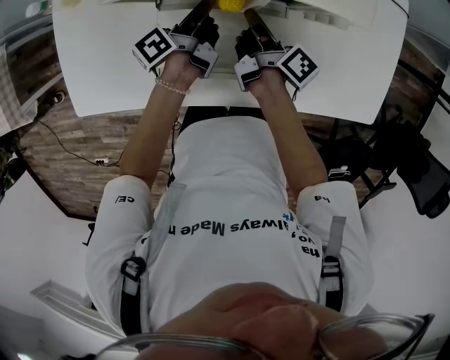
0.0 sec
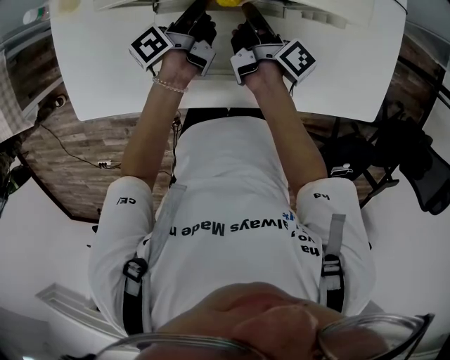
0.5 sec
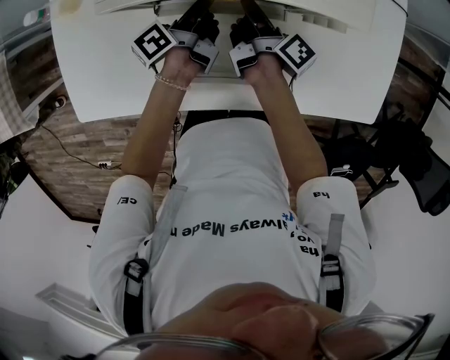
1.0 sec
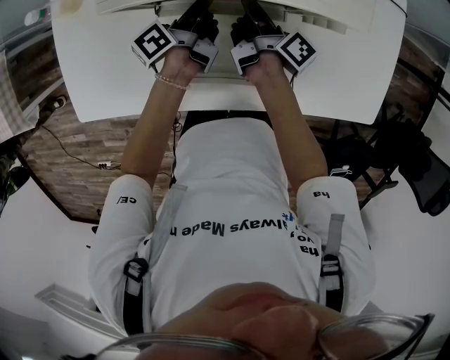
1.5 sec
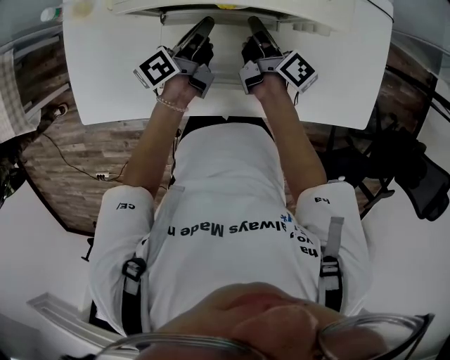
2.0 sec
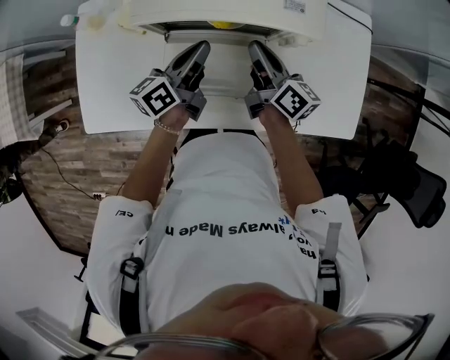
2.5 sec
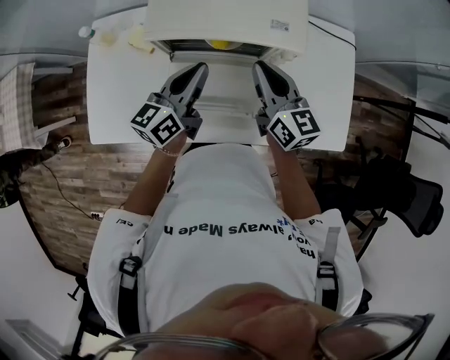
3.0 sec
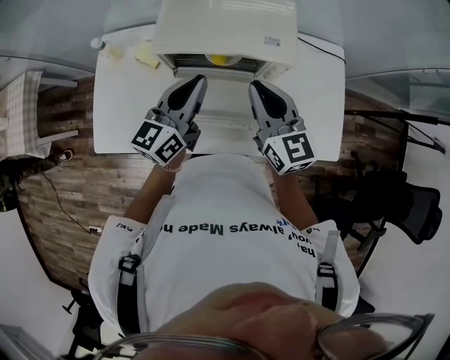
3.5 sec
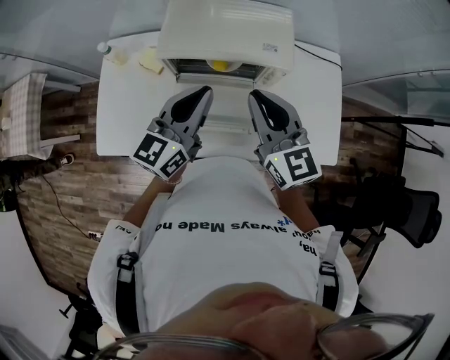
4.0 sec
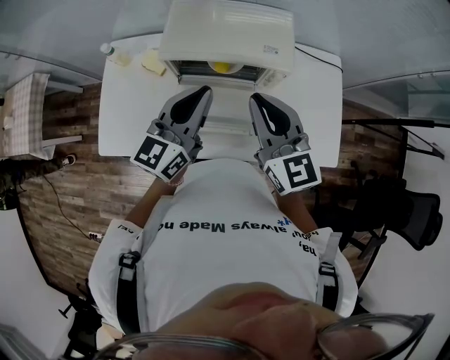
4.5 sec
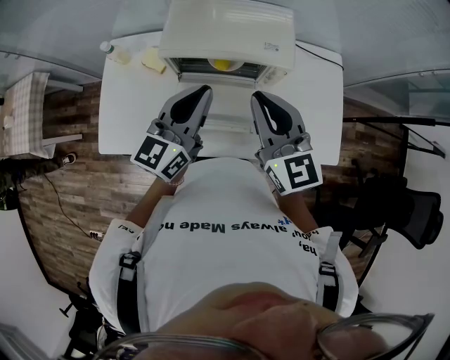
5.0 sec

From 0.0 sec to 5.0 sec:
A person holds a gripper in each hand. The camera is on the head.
From 0.0 sec to 2.5 sec: Both grippers travel together upward, about 15 cm. The right gripper rotates approximately 40 degrees. The left gripper turns by some 30 degrees.
From 2.5 sec to 5.0 sec: The grippers both shift upward and backward by roughly 25 cm. The left gripper turns by about 40 degrees; the right gripper twists some 50 degrees counterclockwise, seen from behind.

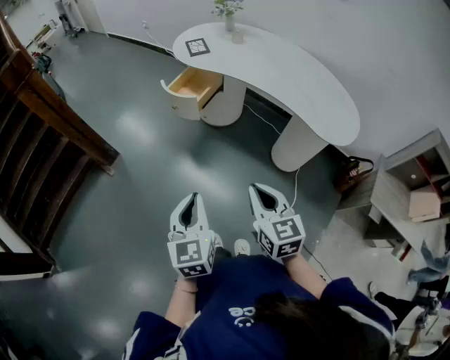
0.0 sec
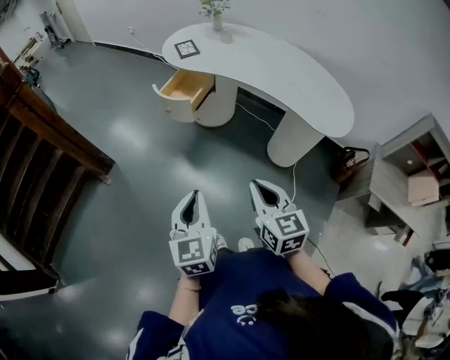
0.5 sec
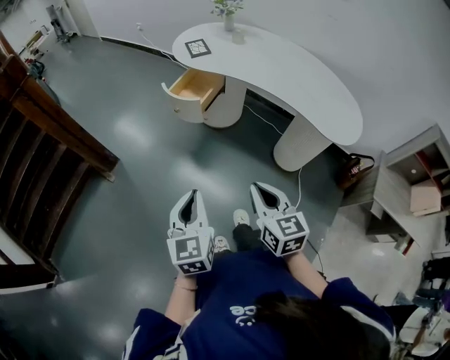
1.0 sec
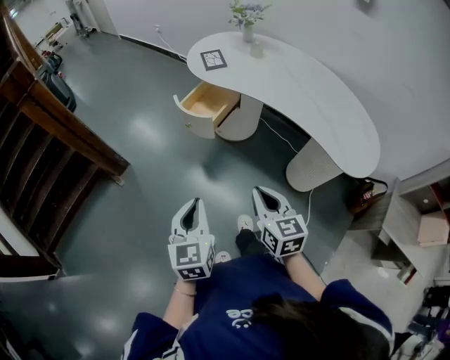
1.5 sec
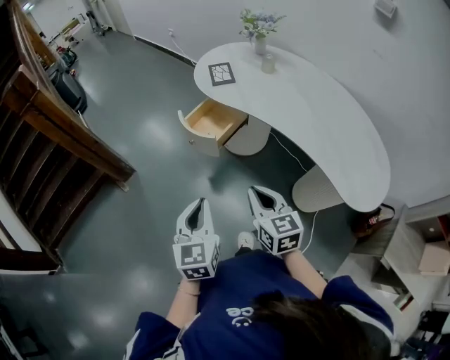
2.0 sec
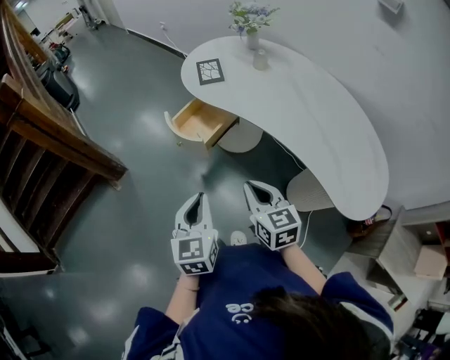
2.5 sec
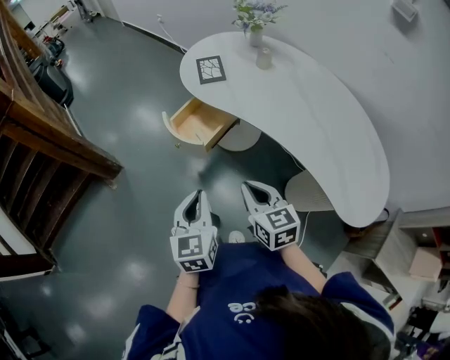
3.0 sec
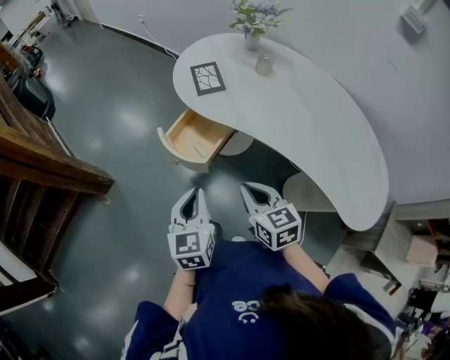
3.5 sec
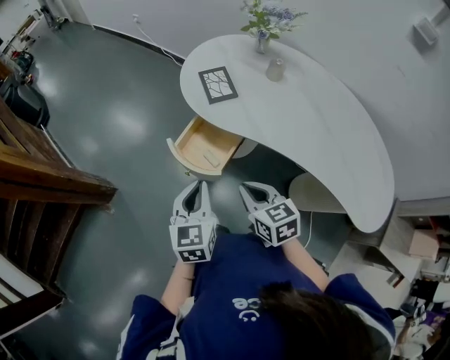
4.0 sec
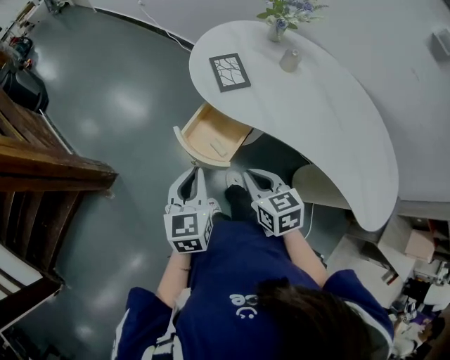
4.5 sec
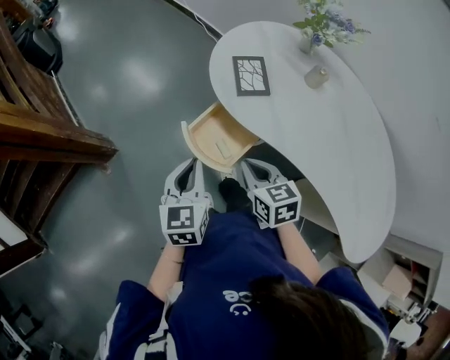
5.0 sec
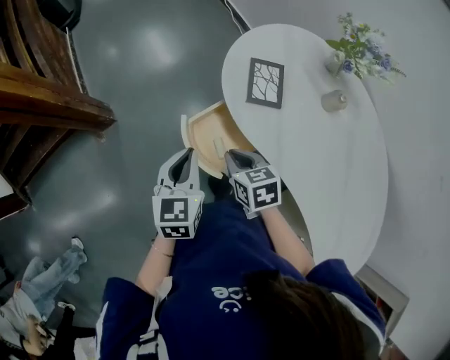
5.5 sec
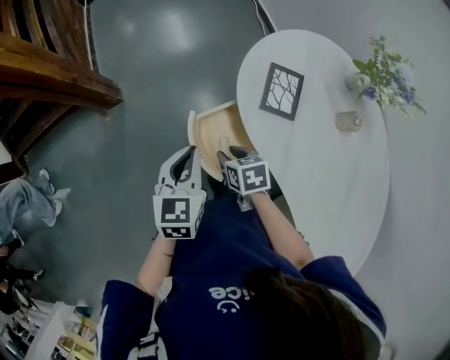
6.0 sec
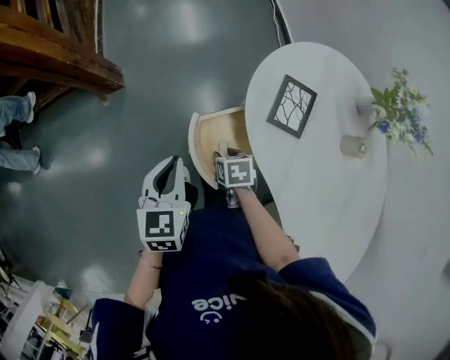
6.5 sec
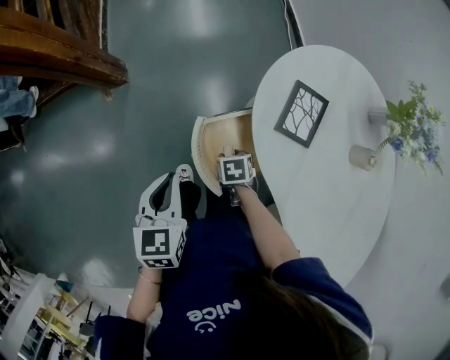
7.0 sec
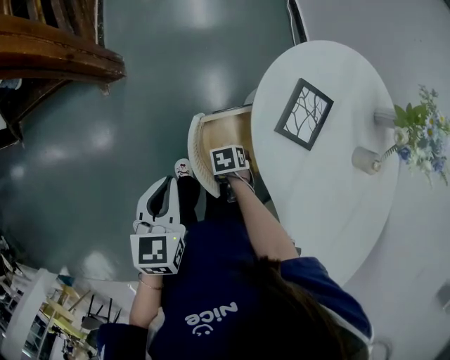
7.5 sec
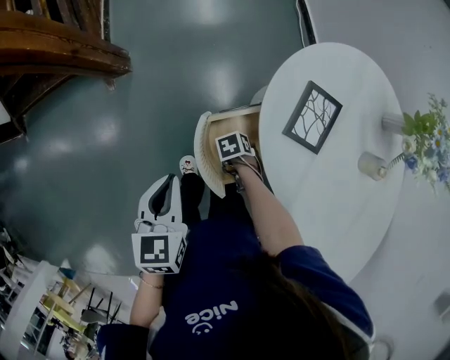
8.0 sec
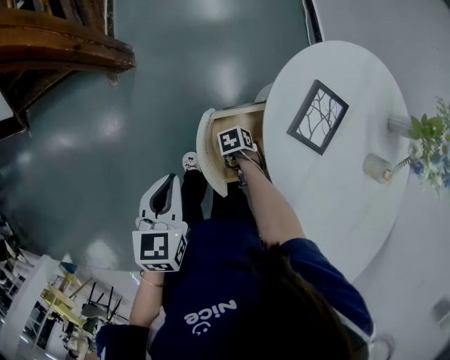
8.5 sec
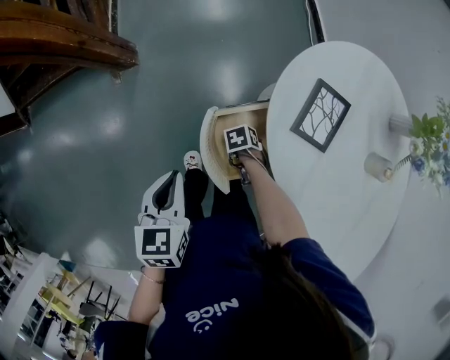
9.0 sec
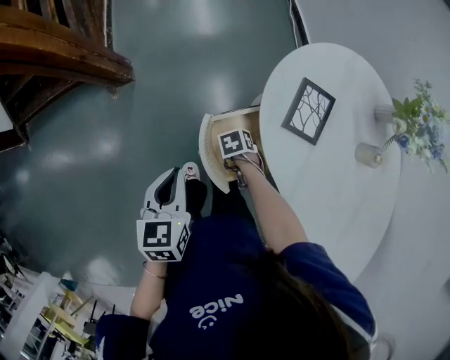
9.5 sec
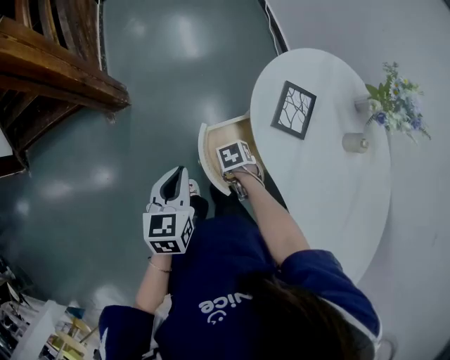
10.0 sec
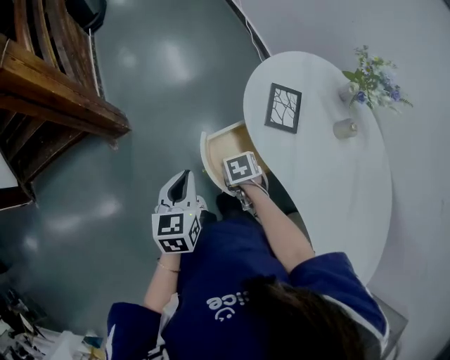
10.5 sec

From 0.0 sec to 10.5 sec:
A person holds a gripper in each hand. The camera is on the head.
From 0.0 sec to 2.0 sec: The grippers both shift forward by approximately 25 cm.
From 2.0 sec to 4.0 sec: The two grippers go roughly 25 cm forward.
From 4.0 sec to 6.5 sec: The left gripper changes place by about 15 cm, and rotates roughly 40 degrees; the right gripper goes about 20 cm downward, tilts its fingers approximately 30 degrees downward, and opens.
From 6.5 sec to 8.5 sec: The right gripper heads downward, covering some 15 cm, and rotates roughly 40 degrees.
From 8.5 sec to 10.5 sec: The right gripper travels upward by some 20 cm, and turns by about 30 degrees.

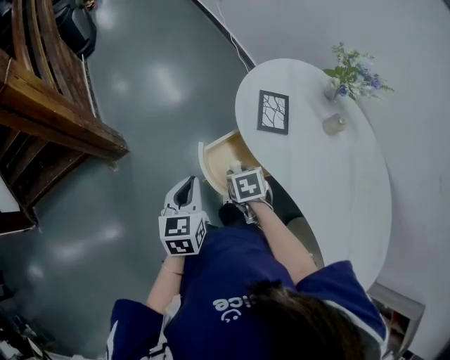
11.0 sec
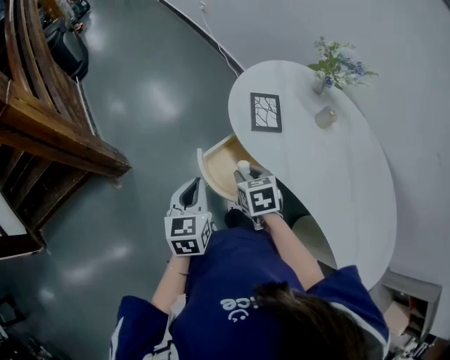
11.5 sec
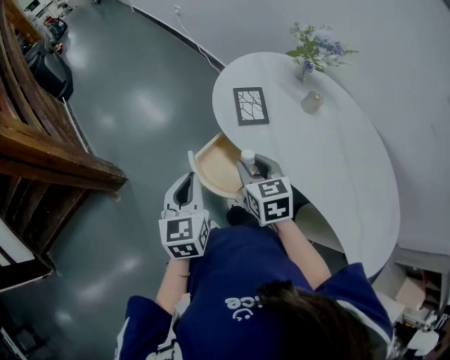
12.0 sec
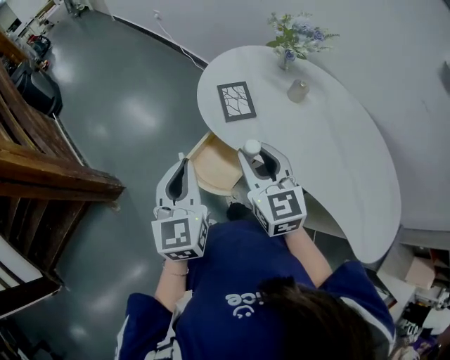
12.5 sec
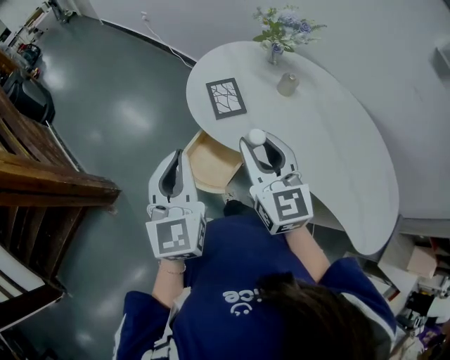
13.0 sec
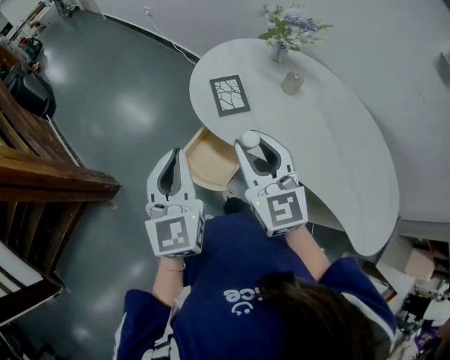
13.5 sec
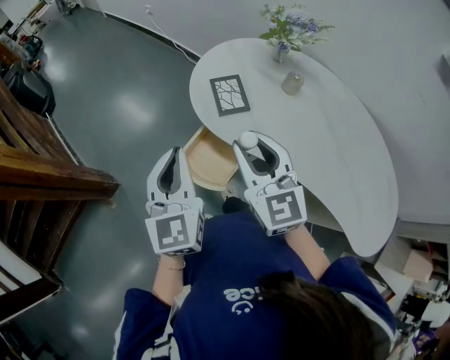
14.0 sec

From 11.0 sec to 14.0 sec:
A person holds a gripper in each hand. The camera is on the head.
From 11.0 sec to 12.5 sec: The left gripper is displaced upward and to the right by roughly 15 cm, and changes its angle by roughly 20 degrees. Meanwhile the right gripper is displaced upward by approximately 25 cm, and points its fingers about 50 degrees further upward.
From 12.5 sec to 14.0 sec: There are only small adjustments of the grippers.

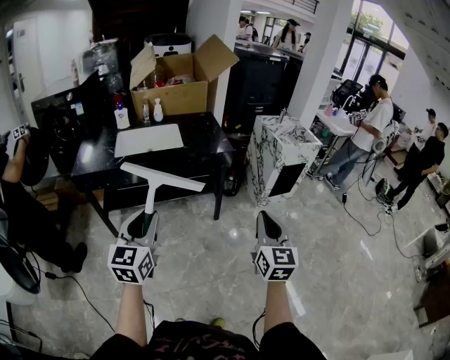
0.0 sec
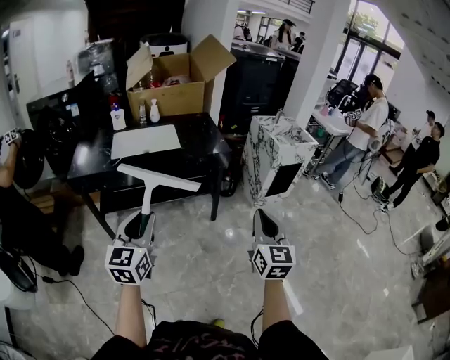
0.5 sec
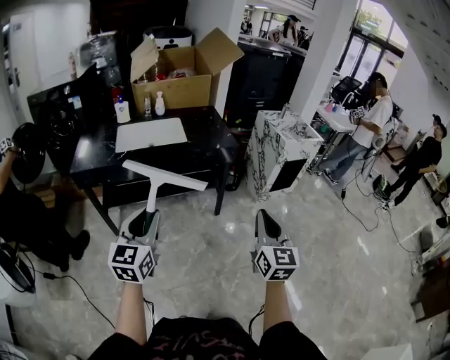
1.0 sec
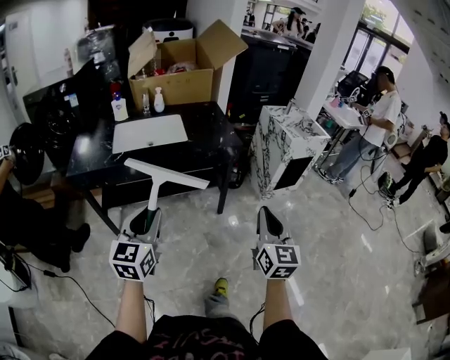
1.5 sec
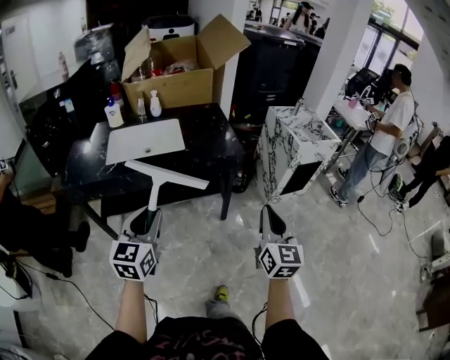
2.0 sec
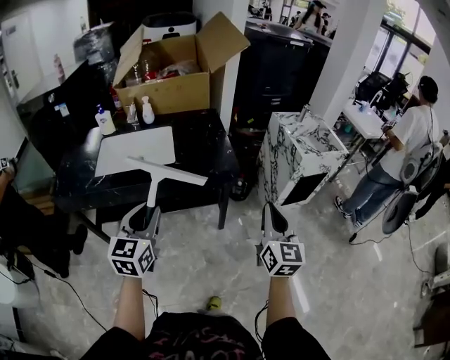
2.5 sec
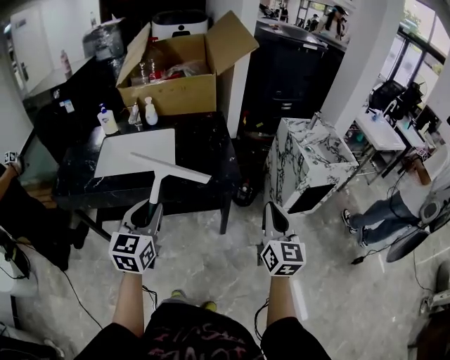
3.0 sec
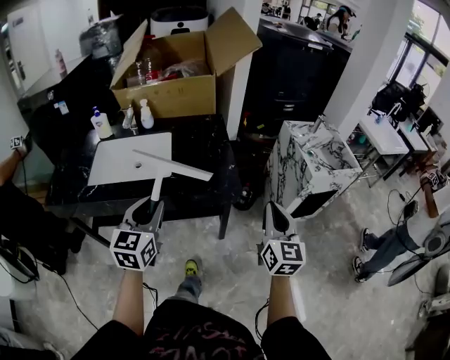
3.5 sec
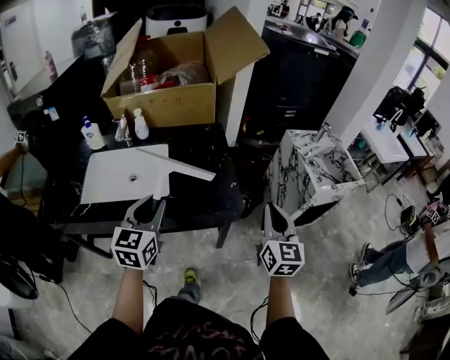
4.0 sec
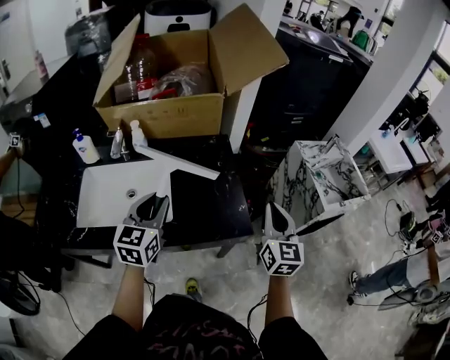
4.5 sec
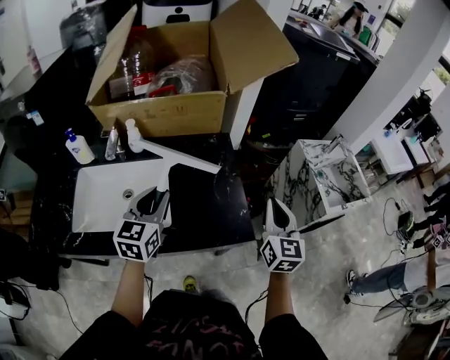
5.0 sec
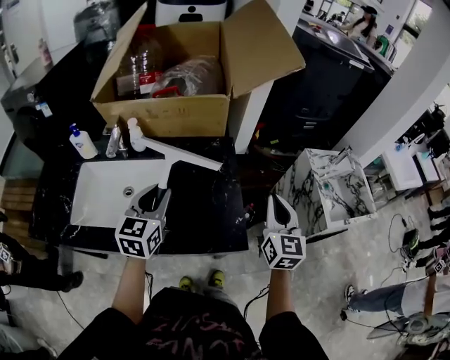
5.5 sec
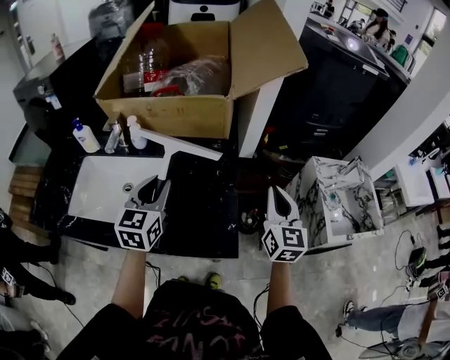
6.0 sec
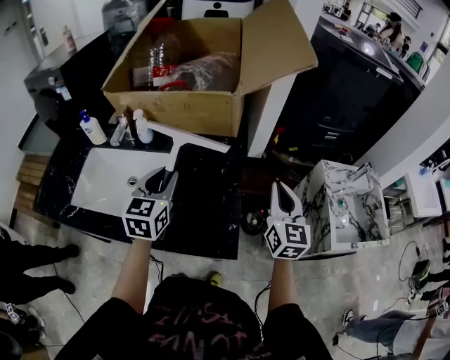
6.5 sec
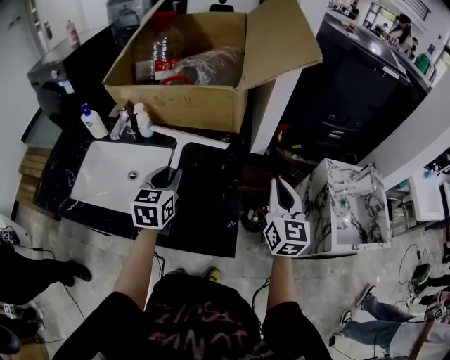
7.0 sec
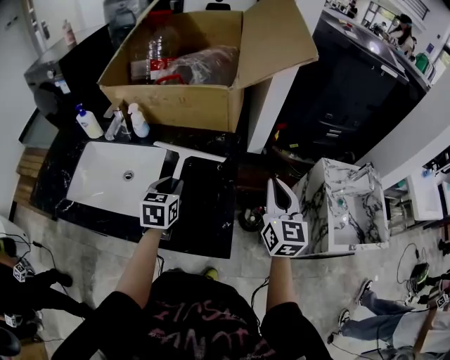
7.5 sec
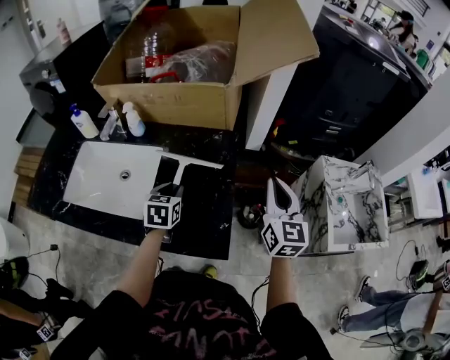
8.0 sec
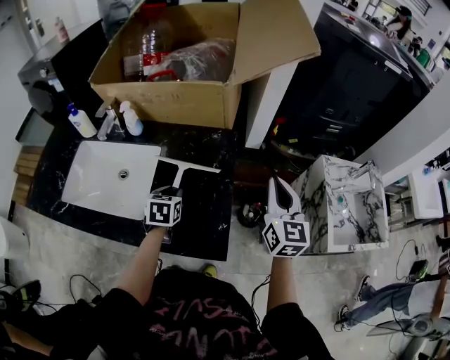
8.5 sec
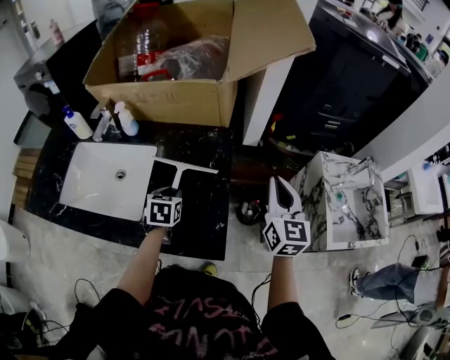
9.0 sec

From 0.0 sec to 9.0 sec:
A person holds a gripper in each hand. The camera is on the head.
From 0.0 sec to 2.0 sec: The two grippers go some 20 cm forward.
From 2.0 sec to 4.5 sec: Both grippers are carried forward, roughly 50 cm.
From 4.5 sec to 7.0 sec: The left gripper goes about 15 cm forward, to the right and downward, and changes its angle by roughly 20 degrees. The right gripper heads forward, covering roughly 20 cm.
From 7.0 sec to 9.0 sec: The left gripper heads downward, covering some 15 cm, and swivels approximately 30 degrees.
